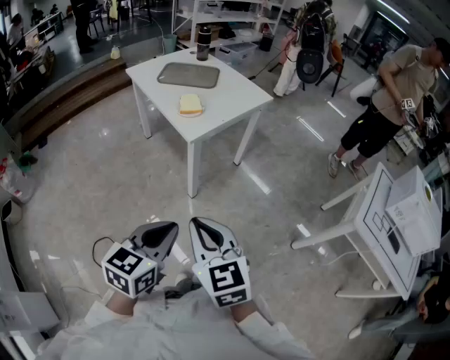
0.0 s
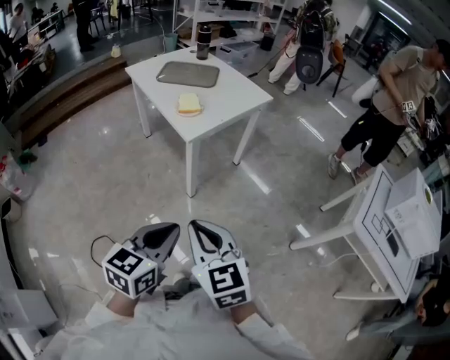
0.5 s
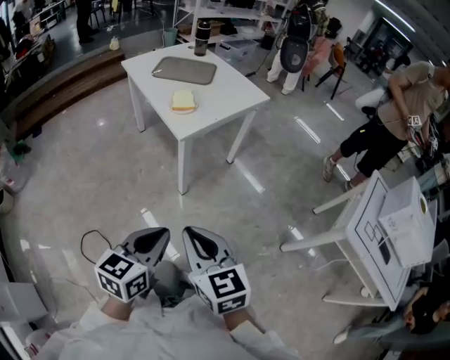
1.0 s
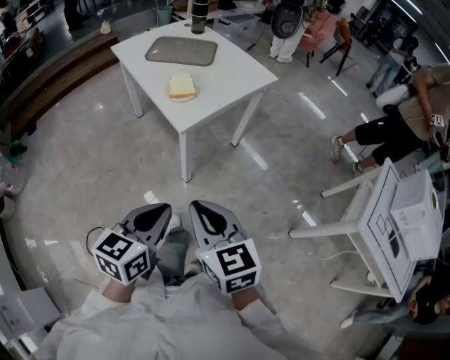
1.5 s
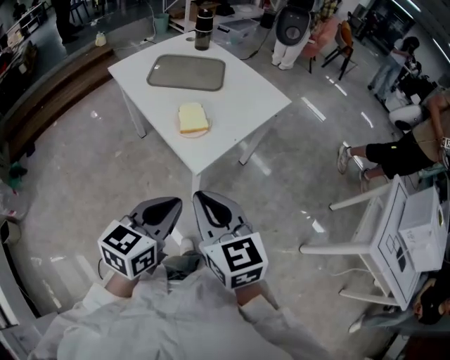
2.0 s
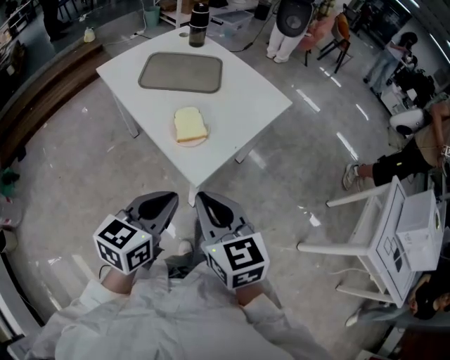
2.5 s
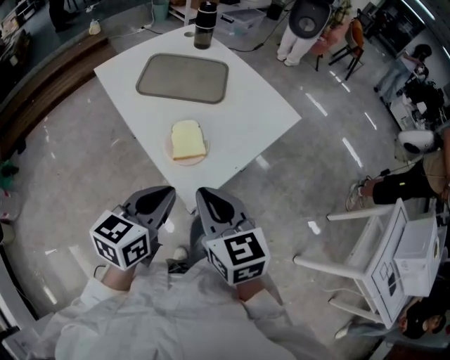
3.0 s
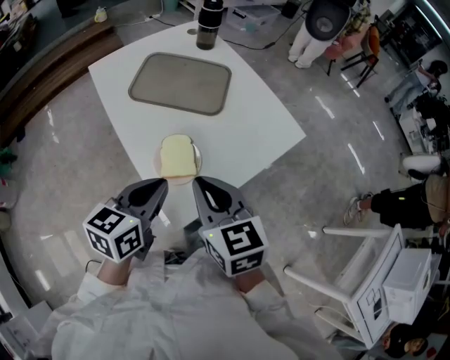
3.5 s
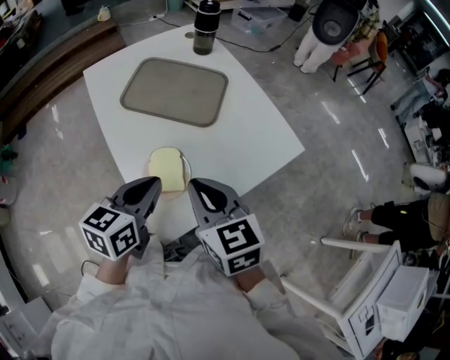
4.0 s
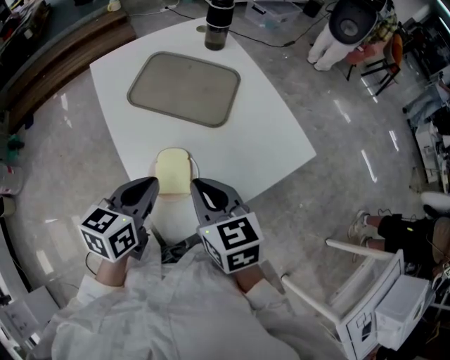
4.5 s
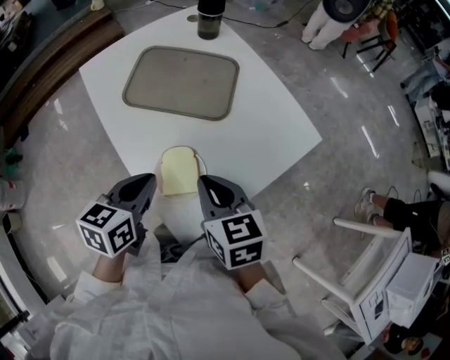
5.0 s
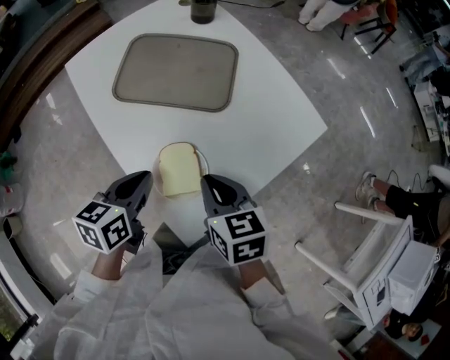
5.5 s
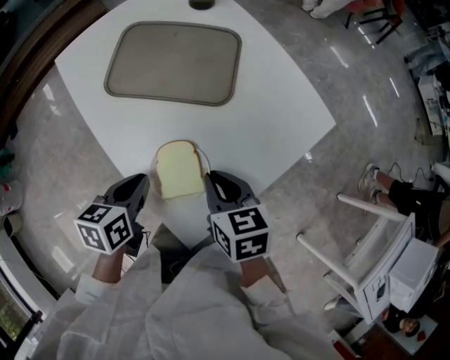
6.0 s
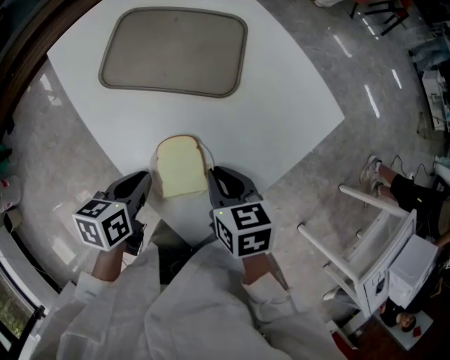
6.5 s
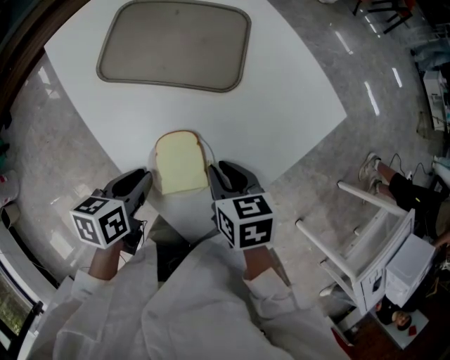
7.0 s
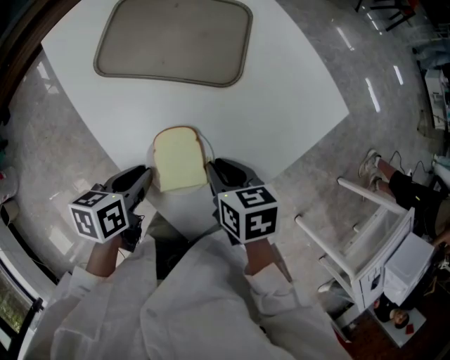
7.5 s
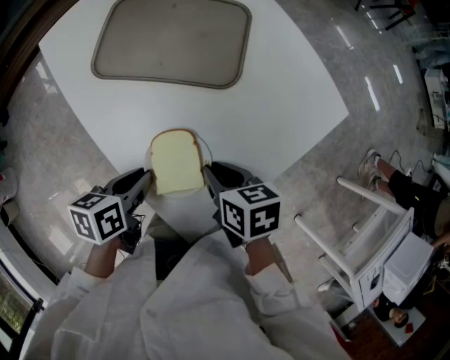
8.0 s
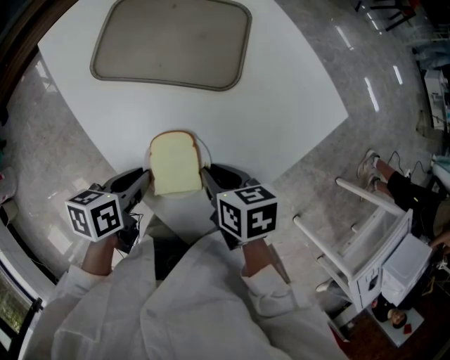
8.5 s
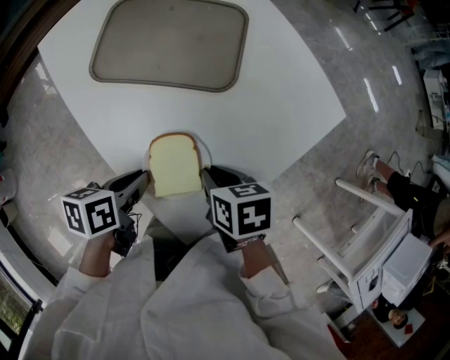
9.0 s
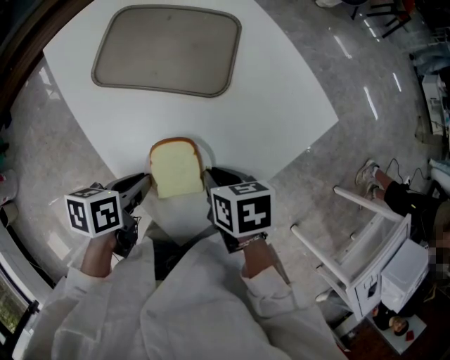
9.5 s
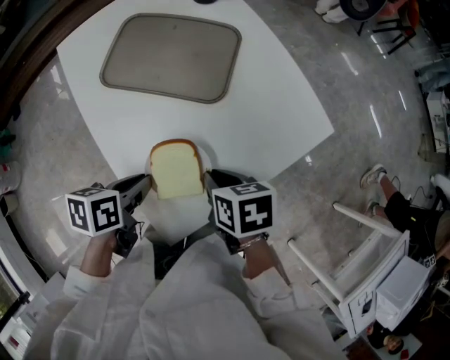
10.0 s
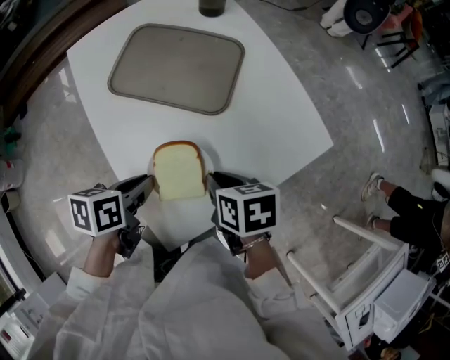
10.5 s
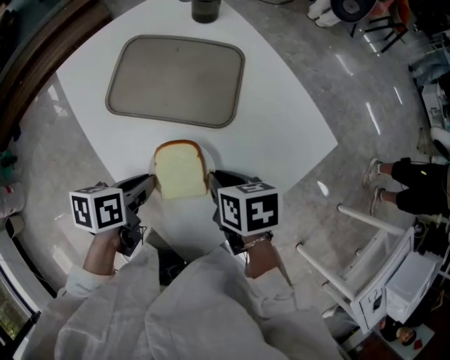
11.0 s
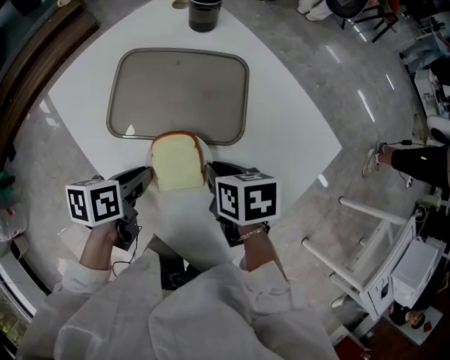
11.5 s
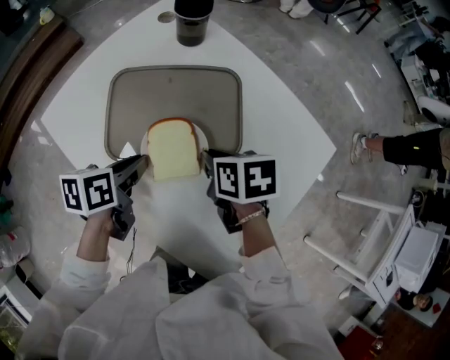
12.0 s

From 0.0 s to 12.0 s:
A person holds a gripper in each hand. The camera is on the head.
From 0.0 s to 2.0 s: The grippers both shift forward by some 30 cm.
From 2.0 s to 4.0 s: Both grippers move forward, roughly 35 cm.
From 4.0 s to 6.0 s: The right gripper heads downward, covering about 10 cm, and changes its angle by roughly 30 degrees; the left gripper goes approximately 15 cm downward and to the left, and changes its angle by about 20 degrees.
From 6.0 s to 8.0 s: The right gripper shifts roughly 5 cm downward.
From 8.0 s to 10.0 s: The left gripper moves roughly 5 cm; the right gripper ends up roughly 5 cm from where it was.
From 10.0 s to 12.0 s: Both grippers travel together forward and to the left, some 25 cm.

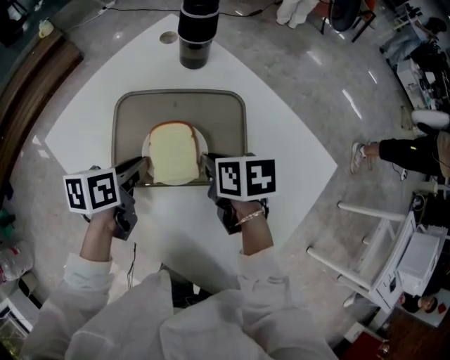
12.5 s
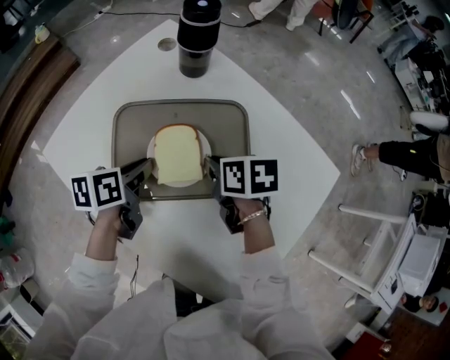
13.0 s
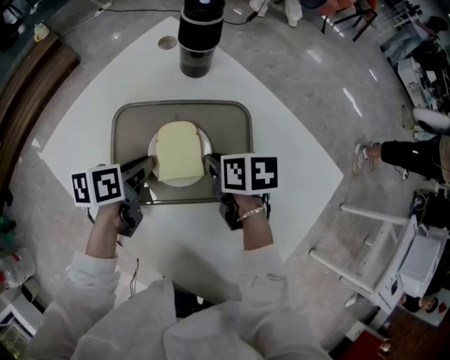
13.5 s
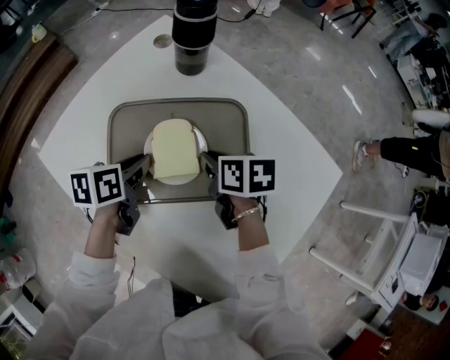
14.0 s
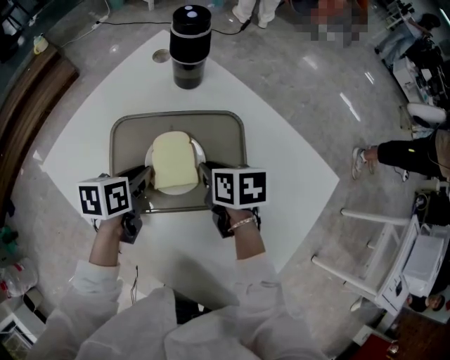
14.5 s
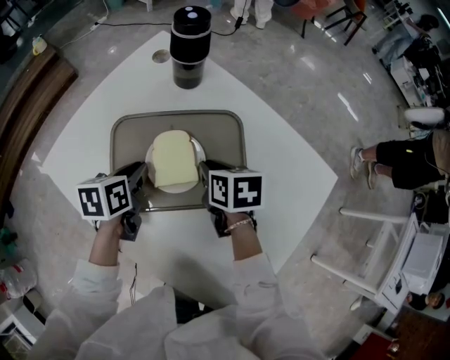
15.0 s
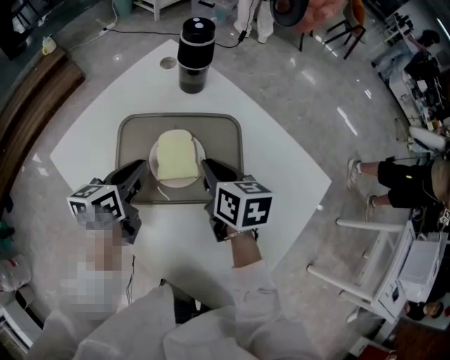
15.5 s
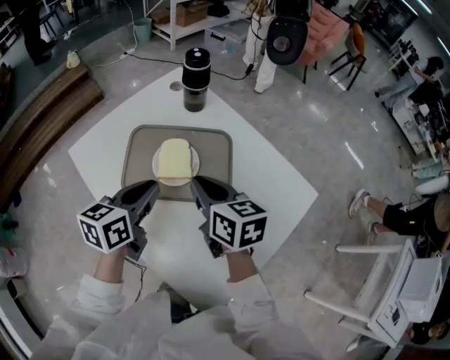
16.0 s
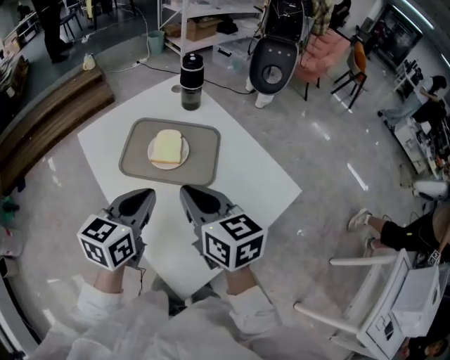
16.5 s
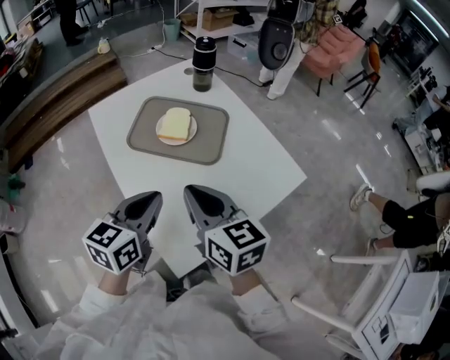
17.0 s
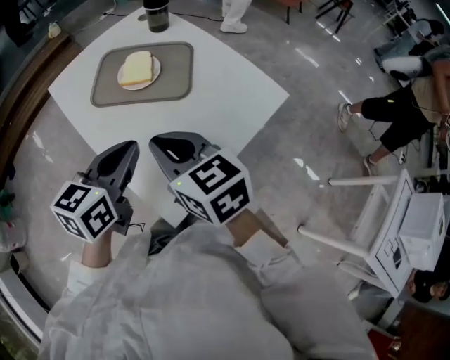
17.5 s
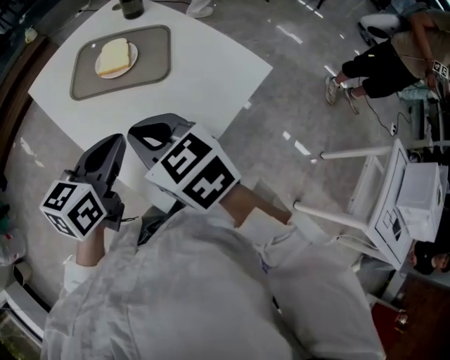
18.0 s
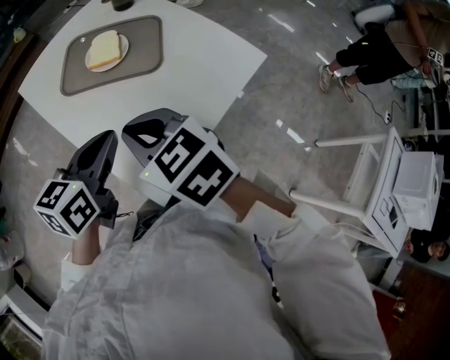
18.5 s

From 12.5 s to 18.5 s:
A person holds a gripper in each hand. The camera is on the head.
From 12.5 s to 14.5 s: The two grippers go about 5 cm forward.
From 14.5 s to 16.5 s: The left gripper heads backward, upward and to the right, covering approximately 35 cm, and rotates some 40 degrees. Meanwhile the right gripper goes some 30 cm upward and backward, and tips its fingers upward by about 30 degrees.
From 16.5 s to 18.5 s: The grippers both shift backward by approximately 10 cm. The right gripper changes its angle by approximately 20 degrees.

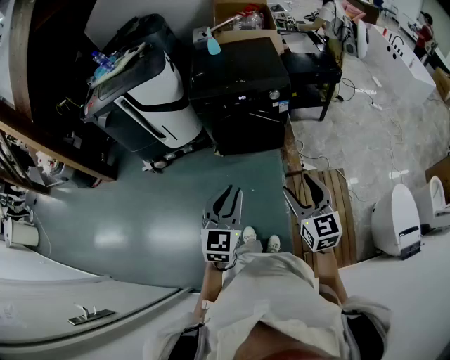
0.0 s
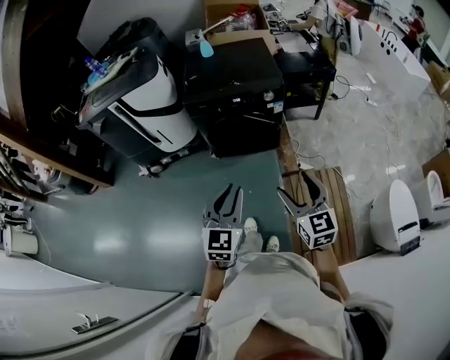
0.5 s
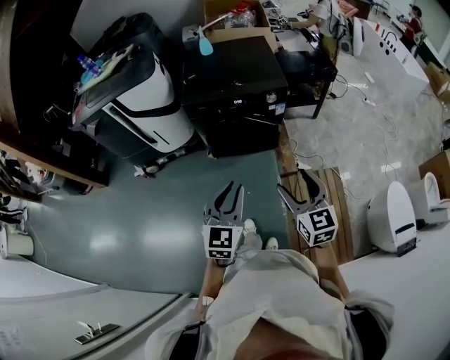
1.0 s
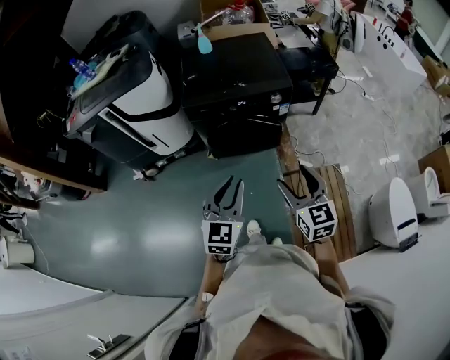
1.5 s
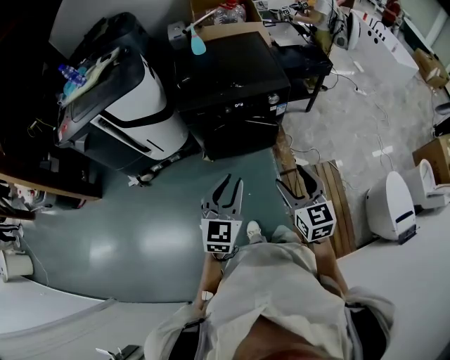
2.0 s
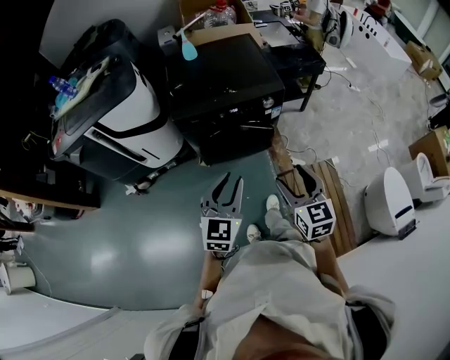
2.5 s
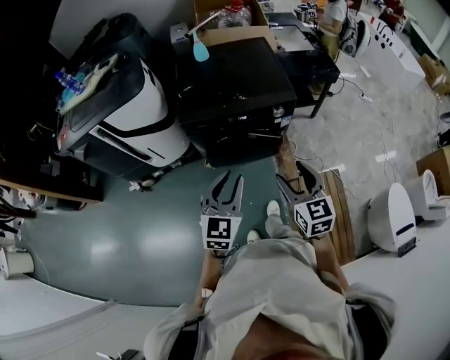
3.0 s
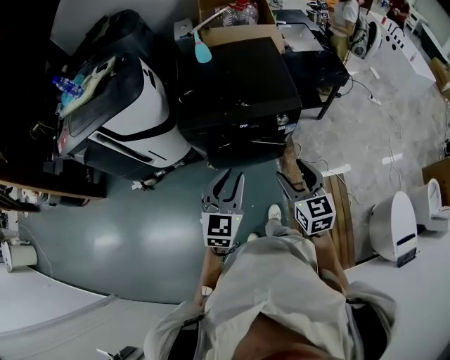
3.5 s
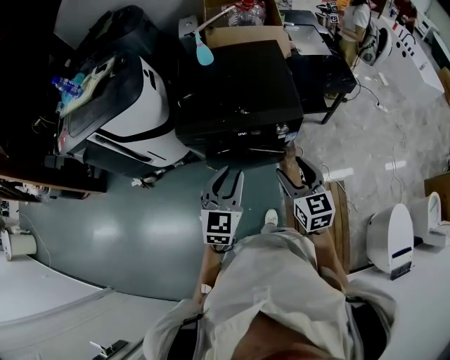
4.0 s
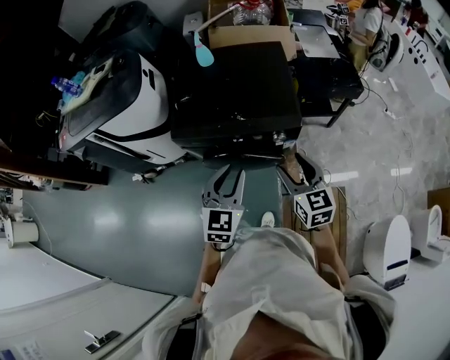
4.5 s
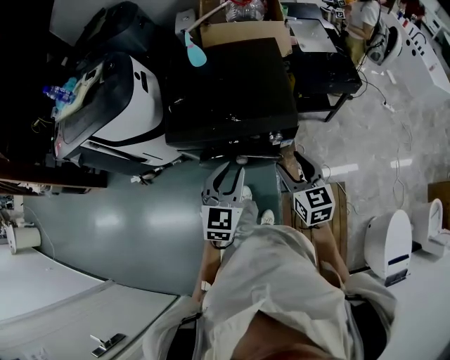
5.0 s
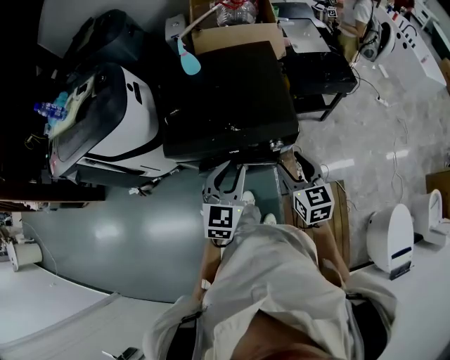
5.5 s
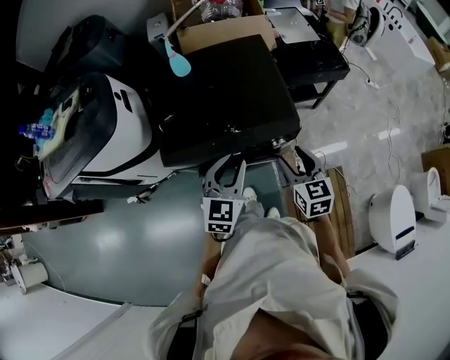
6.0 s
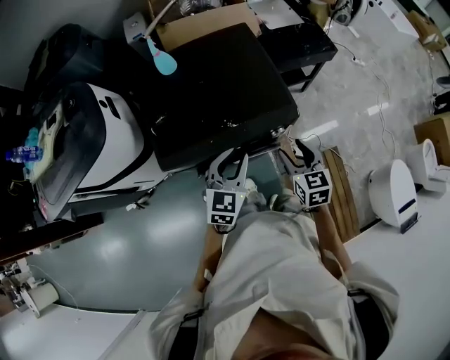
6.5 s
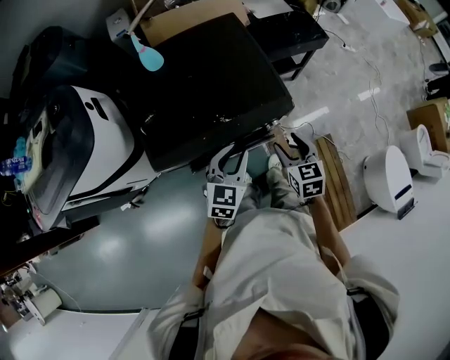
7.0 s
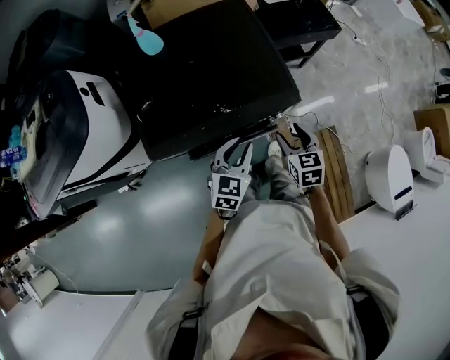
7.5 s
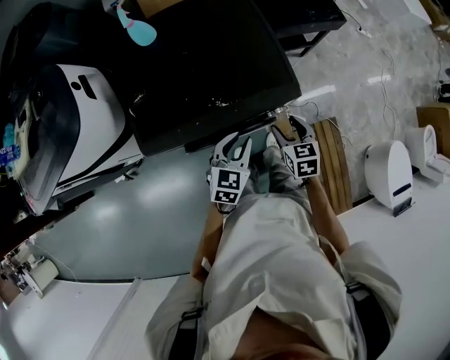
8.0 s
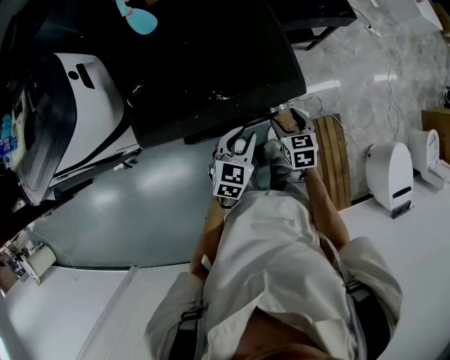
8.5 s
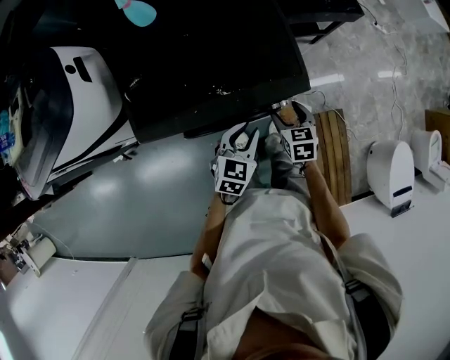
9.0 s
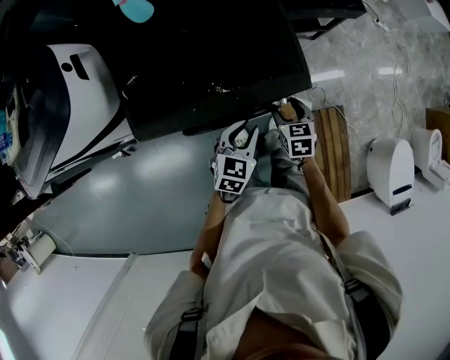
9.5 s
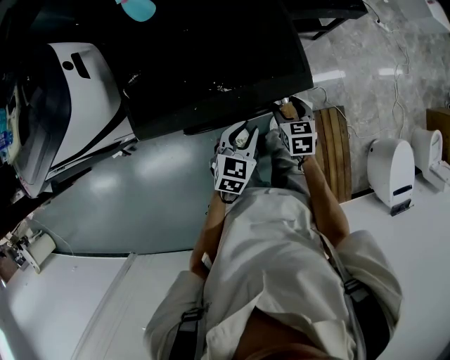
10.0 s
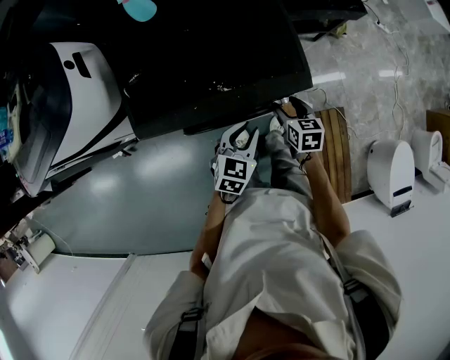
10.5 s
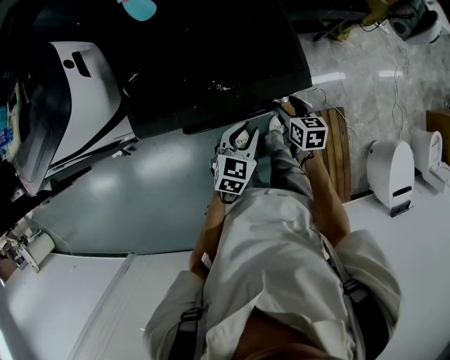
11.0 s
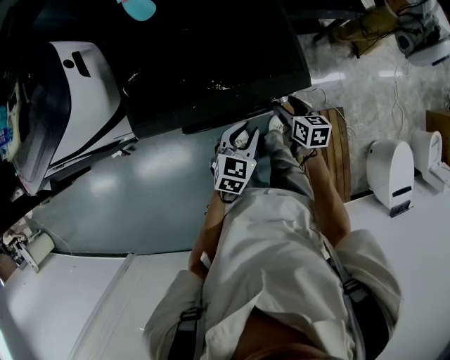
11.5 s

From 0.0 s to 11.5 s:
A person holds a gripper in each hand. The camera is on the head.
From 0.0 s to 2.0 s: The right gripper goes approximately 15 cm forward and to the left, while the left gripper shifts some 15 cm forward.
From 2.0 s to 4.0 s: The grippers both shift forward by approximately 20 cm.
From 4.0 s to 6.0 s: The two grippers go some 15 cm forward.
From 6.0 s to 7.5 s: Both grippers move downward, about 10 cm.
From 7.5 s to 9.5 s: The two grippers go roughly 10 cm downward.
From 9.5 s to 11.5 s: The right gripper swivels approximately 20 degrees.
